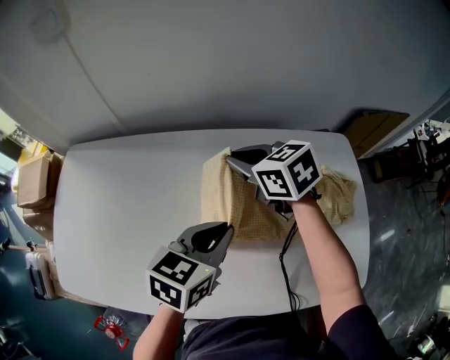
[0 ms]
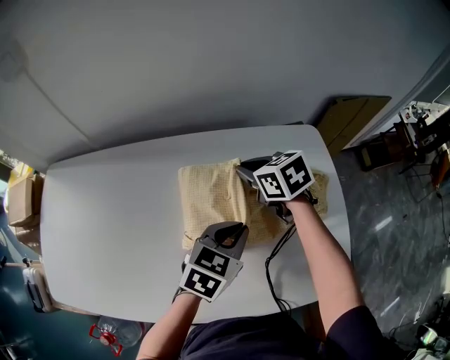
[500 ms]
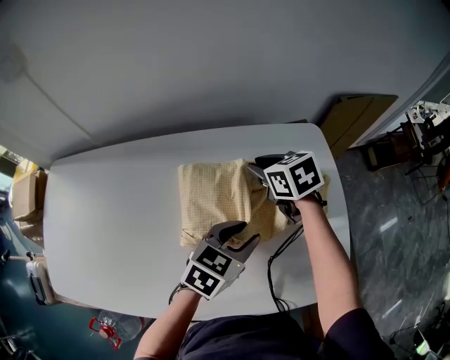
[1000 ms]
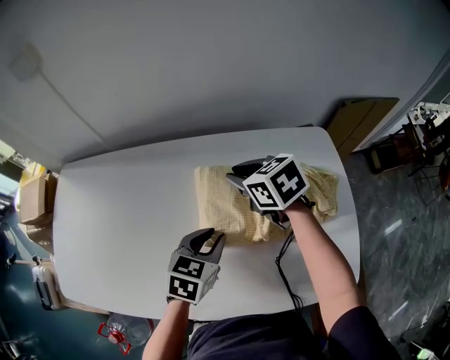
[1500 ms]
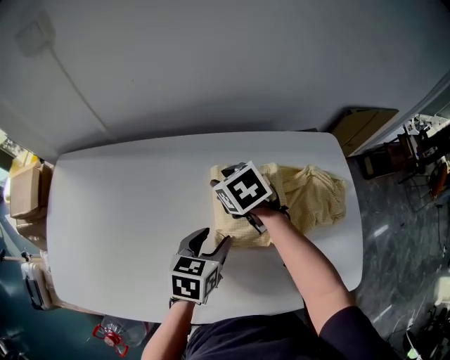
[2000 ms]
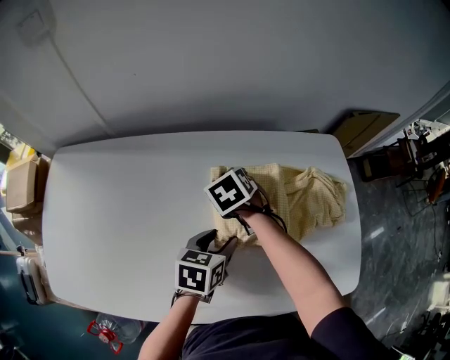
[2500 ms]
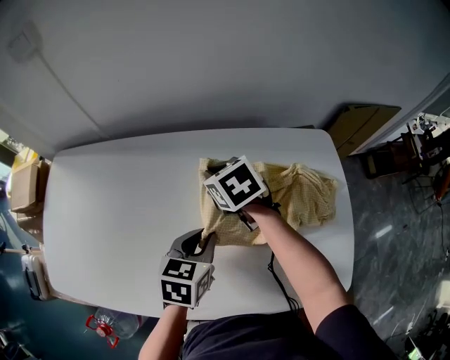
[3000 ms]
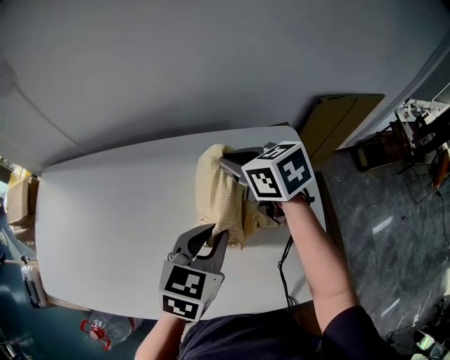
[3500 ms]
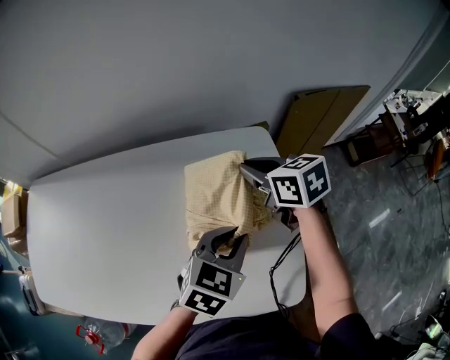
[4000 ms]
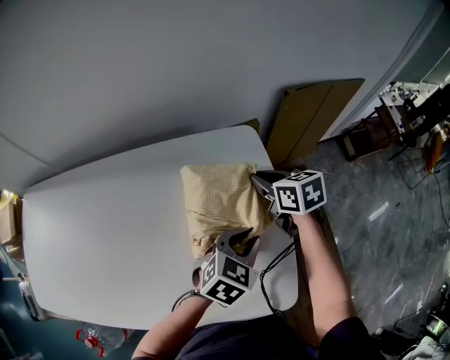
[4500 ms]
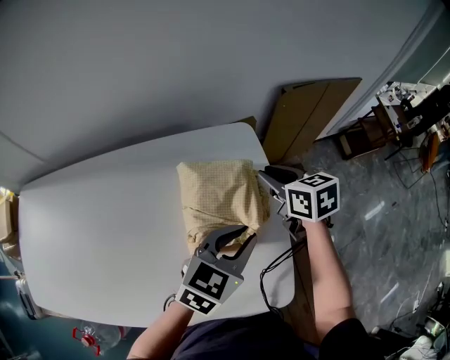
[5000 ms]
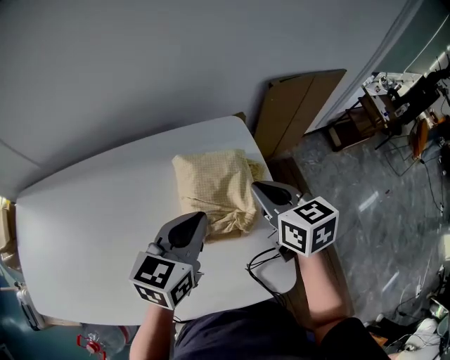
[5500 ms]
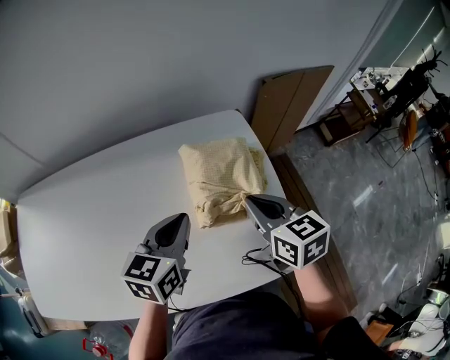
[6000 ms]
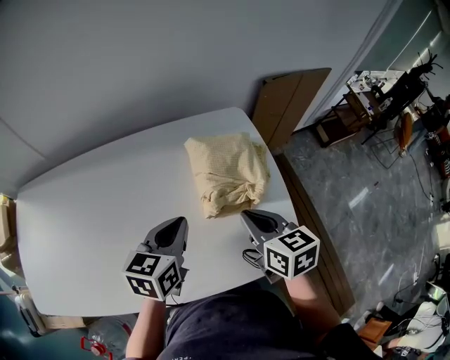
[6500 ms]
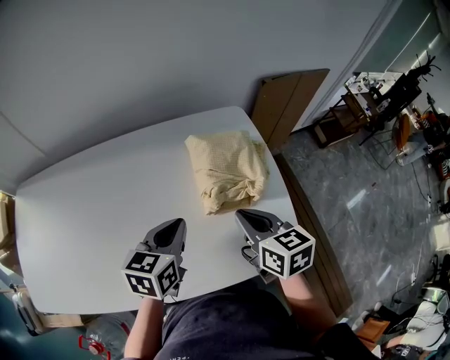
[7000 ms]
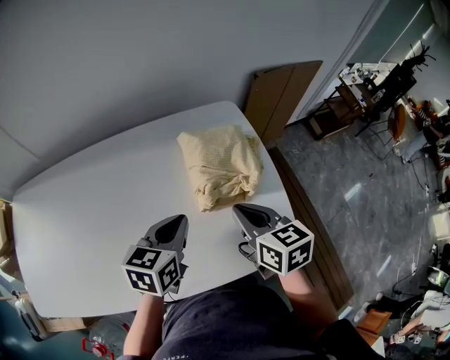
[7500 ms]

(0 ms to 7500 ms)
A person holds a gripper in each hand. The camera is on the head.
0 ms - 2000 ms: The two grippers go roughly 10 cm downward. The left gripper reaches approximately 20 cm to the right, then returns, and opens its fingers. The right gripper reaches roughly 20 cm to the right, then returns, turns by some 20 degrees, and opens up.
2000 ms - 4000 ms: The two grippers go some 35 cm to the right. The left gripper changes its angle by about 30 degrees, and closes. The right gripper turns by approximately 30 degrees, and closes its fingers.
4000 ms - 5500 ms: The right gripper shifts about 10 cm backward and to the right.
5500 ms - 7500 ms: The right gripper moves backward and to the left, some 15 cm, while the left gripper shifts approximately 10 cm to the left and backward.

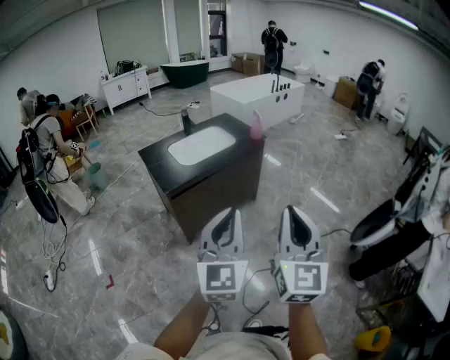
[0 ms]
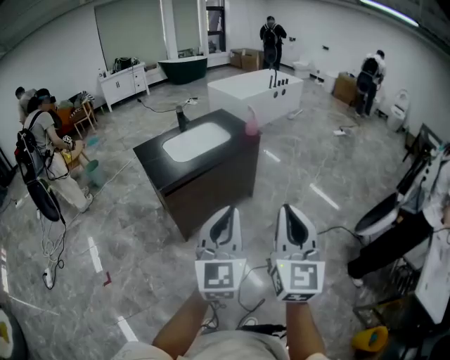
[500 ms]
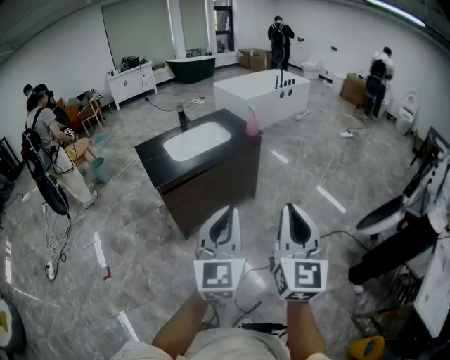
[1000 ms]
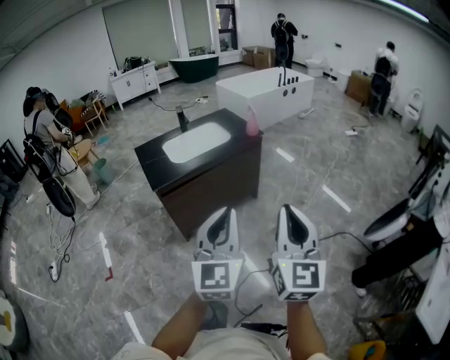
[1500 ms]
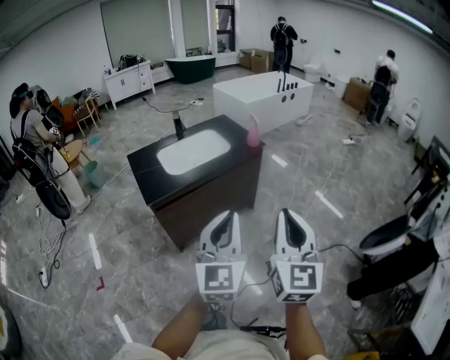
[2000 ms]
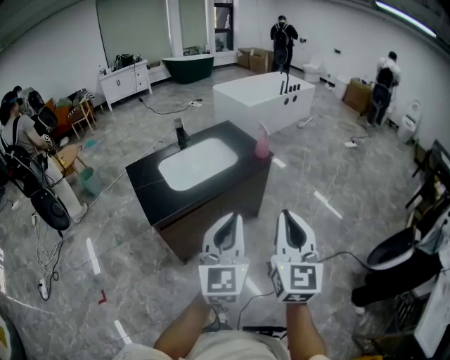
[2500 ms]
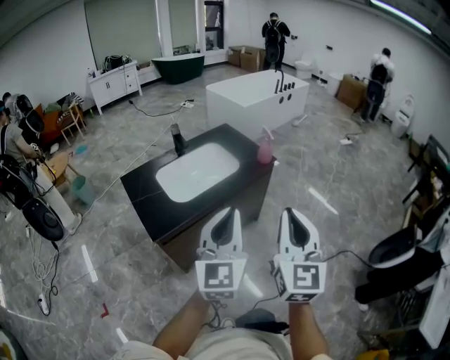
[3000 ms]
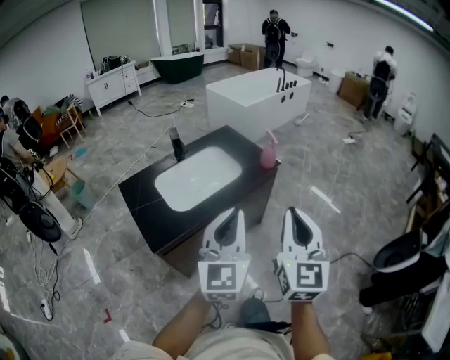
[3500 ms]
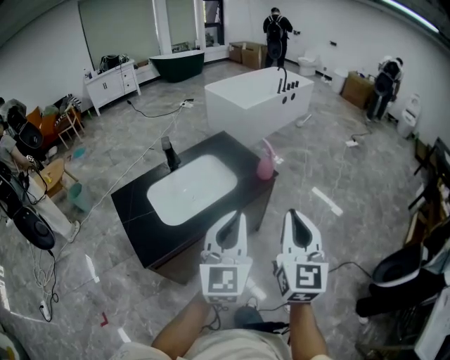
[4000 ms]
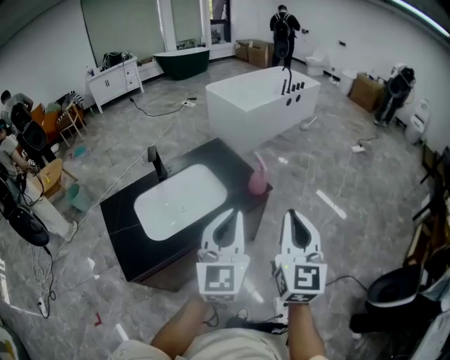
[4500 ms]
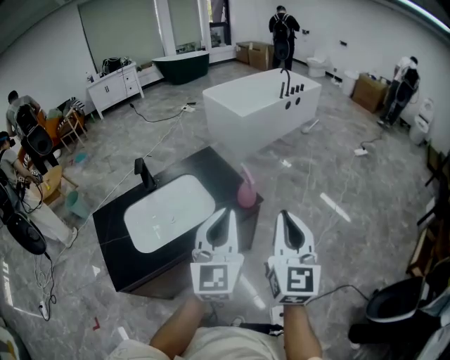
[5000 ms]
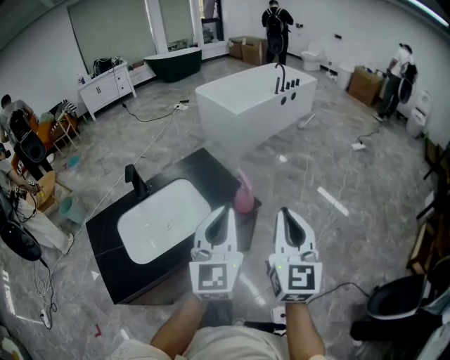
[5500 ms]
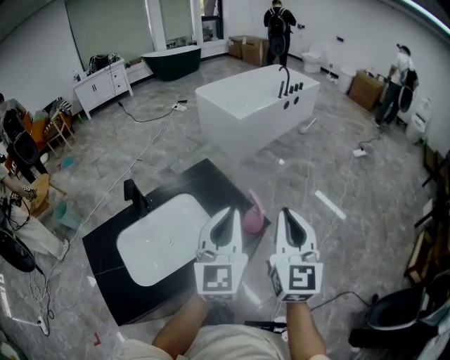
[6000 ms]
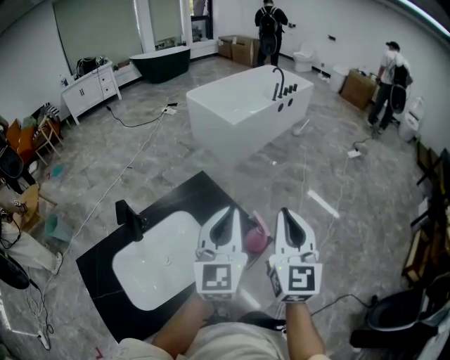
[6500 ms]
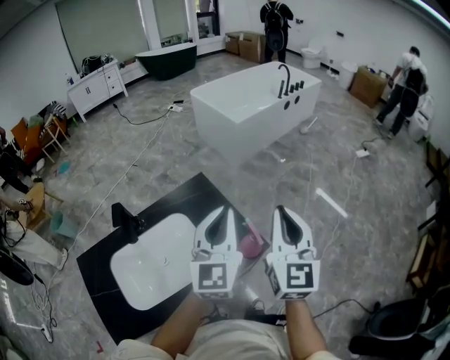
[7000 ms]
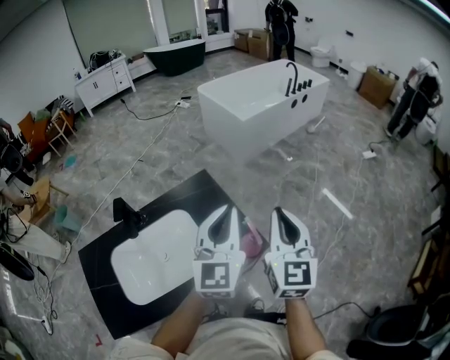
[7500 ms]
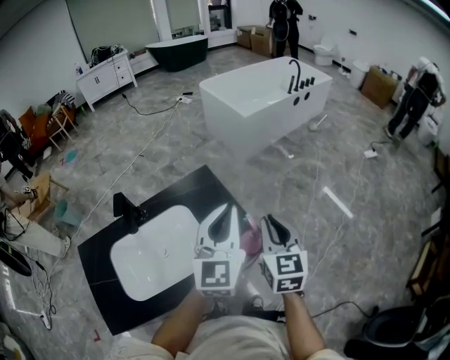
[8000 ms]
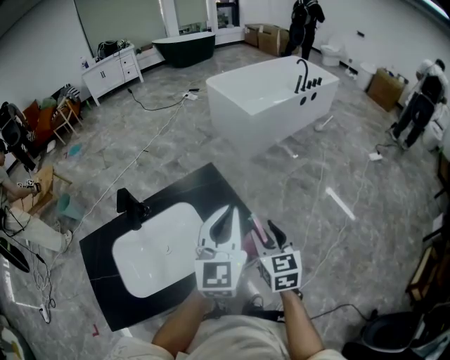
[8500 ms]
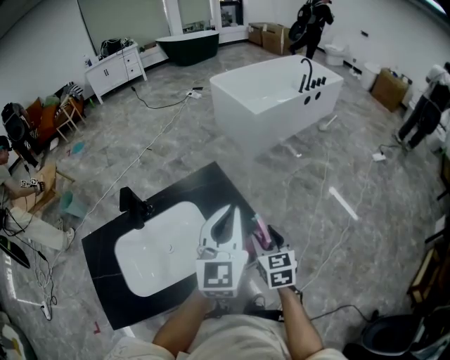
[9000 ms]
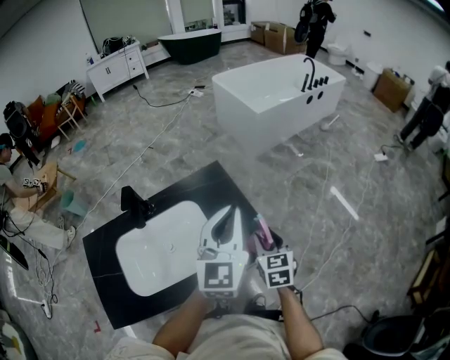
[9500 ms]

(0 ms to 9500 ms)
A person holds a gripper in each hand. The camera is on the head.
0 ms - 2000 ms: The grippers both shift forward and to the right by some 15 cm.
2000 ms - 4000 ms: The grippers both shift forward by roughly 30 cm.
4000 ms - 5500 ms: Both grippers move forward and to the right, approximately 25 cm.
5500 ms - 7500 ms: The two grippers go about 20 cm forward.
7500 ms - 9500 ms: The right gripper heads downward, covering roughly 20 cm, swivels roughly 30 degrees, and opens.

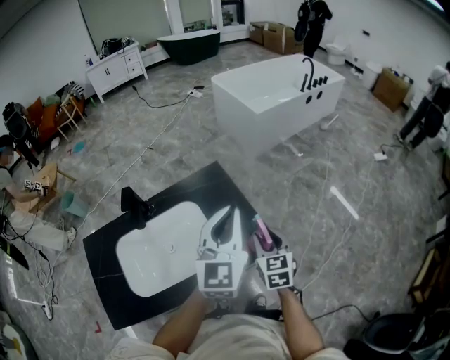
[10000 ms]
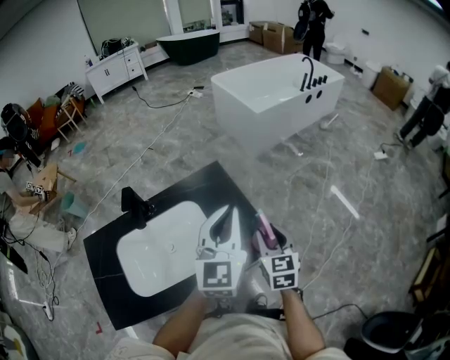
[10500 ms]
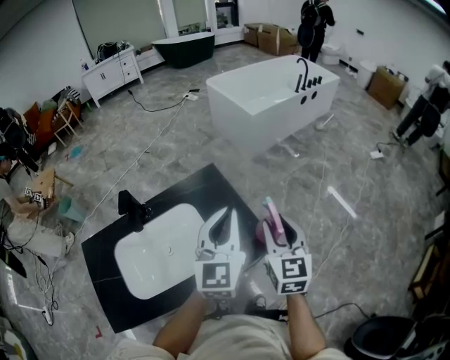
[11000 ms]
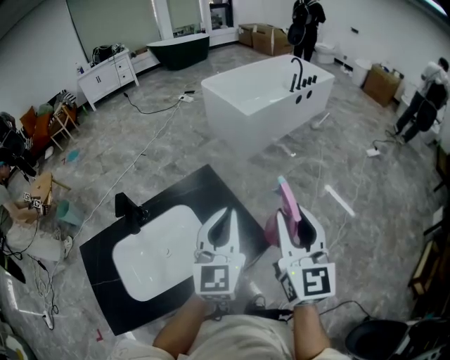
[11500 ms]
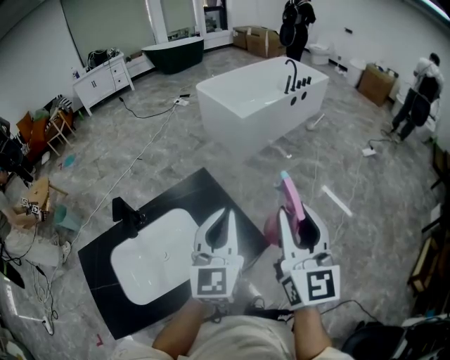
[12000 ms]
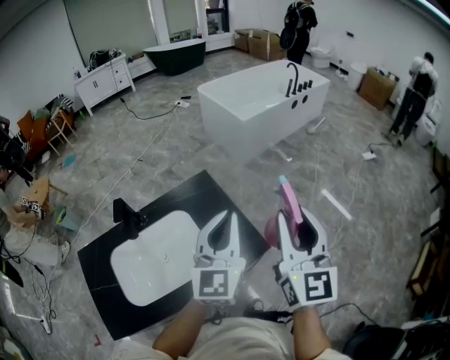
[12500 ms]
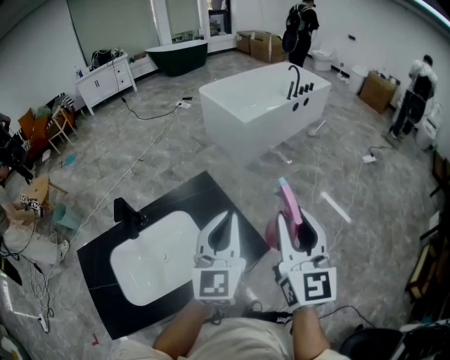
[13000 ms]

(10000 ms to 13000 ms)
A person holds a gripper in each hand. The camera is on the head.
10000 ms - 11500 ms: The right gripper travels upward by approximately 25 cm, and tips its fingers upward by about 30 degrees.
11500 ms - 13000 ms: The grippers stay close to where they were, moving slightly.

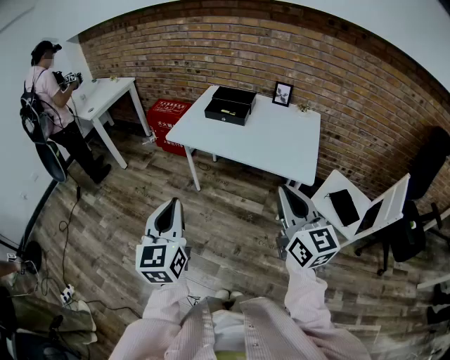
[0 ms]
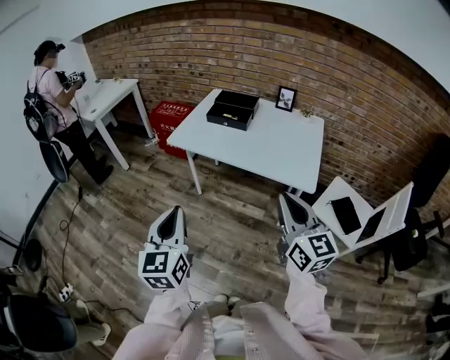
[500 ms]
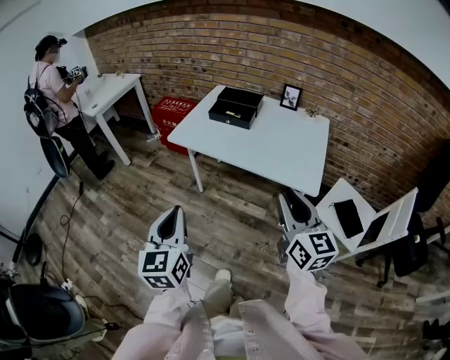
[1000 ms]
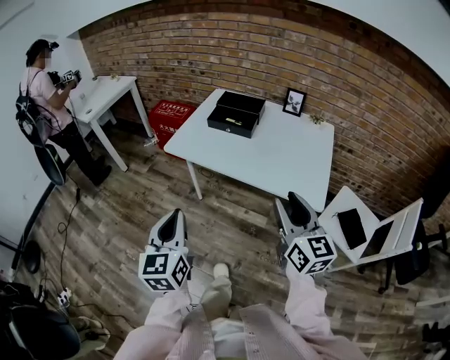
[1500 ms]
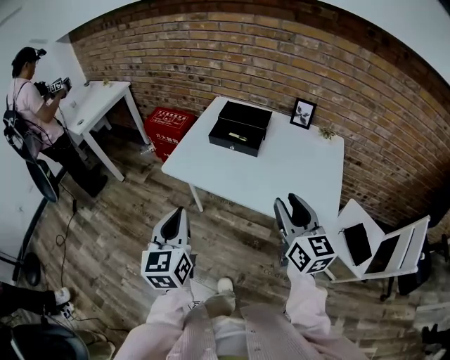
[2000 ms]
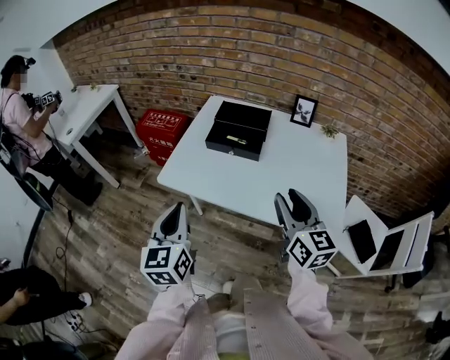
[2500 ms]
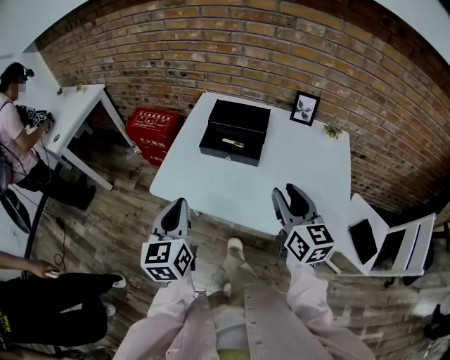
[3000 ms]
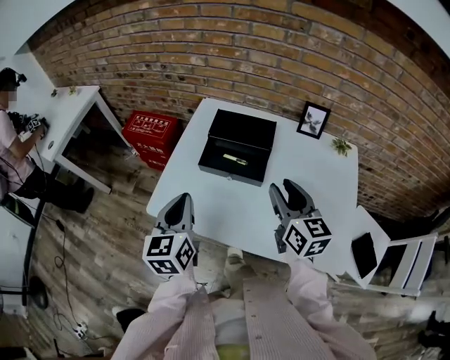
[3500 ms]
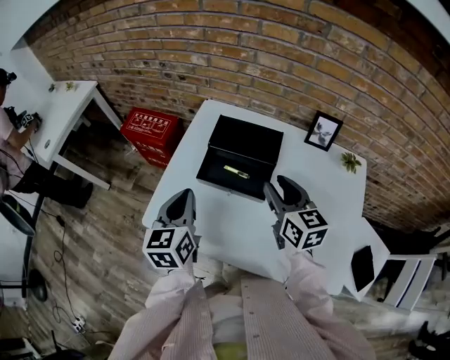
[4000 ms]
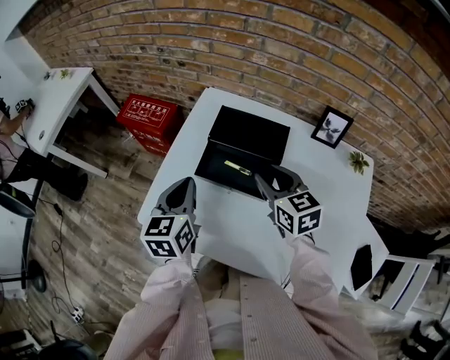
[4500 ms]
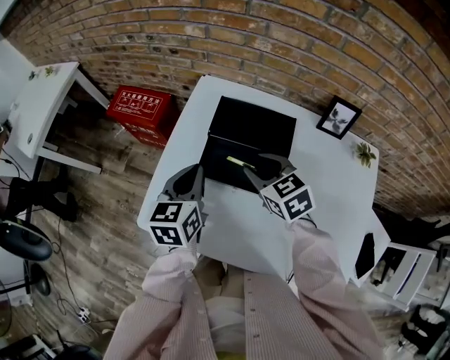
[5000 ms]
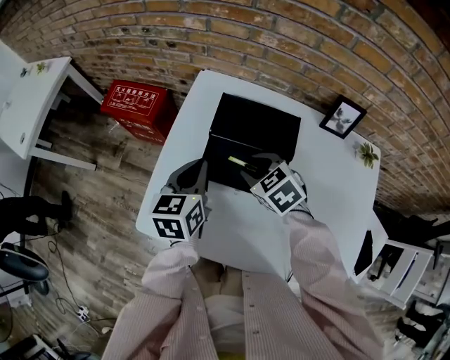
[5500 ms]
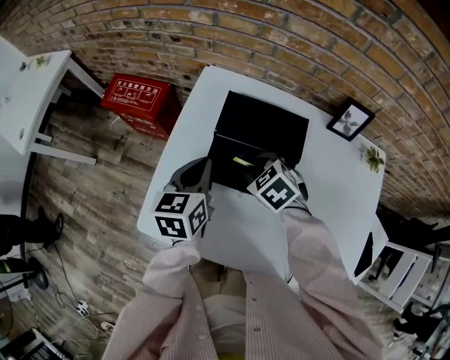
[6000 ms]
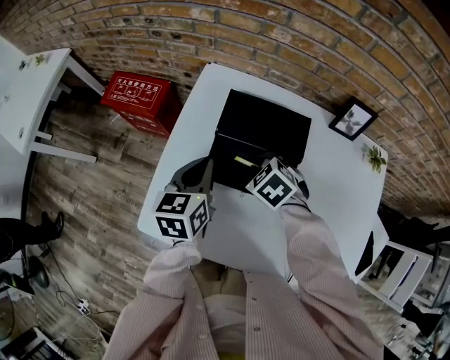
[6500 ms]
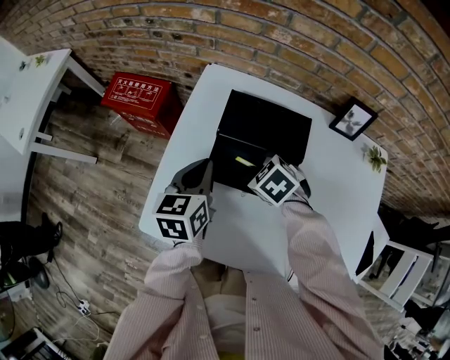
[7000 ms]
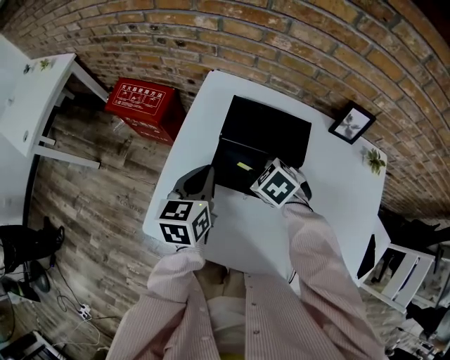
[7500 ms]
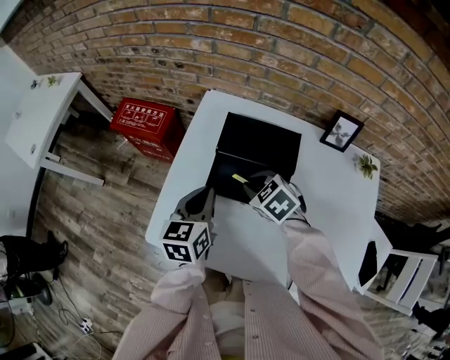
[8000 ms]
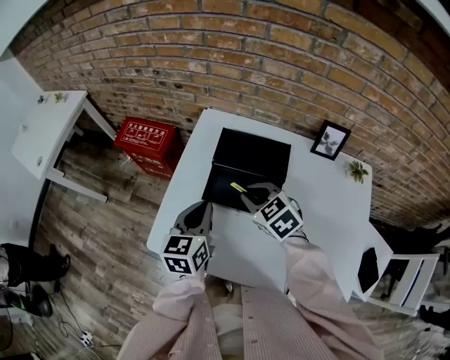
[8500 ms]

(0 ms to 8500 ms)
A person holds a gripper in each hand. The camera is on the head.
0 ms - 2000 ms: The two grippers go some 25 cm forward. The right gripper opens.
2000 ms - 4000 ms: The grippers both shift forward by roughly 35 cm.
4000 ms - 6500 ms: The right gripper travels downward, forward and to the left by about 20 cm, and tilts its fingers some 50 degrees downward. The left gripper travels forward and downward by approximately 15 cm.
6500 ms - 8500 ms: The right gripper heads upward, covering approximately 10 cm, changes its angle by roughly 20 degrees, and closes, while the left gripper shifts some 5 cm backward.
